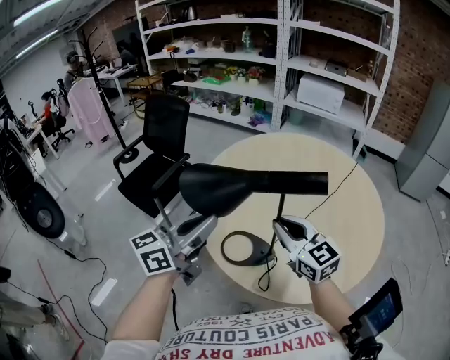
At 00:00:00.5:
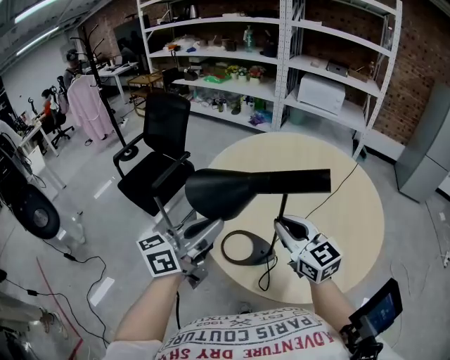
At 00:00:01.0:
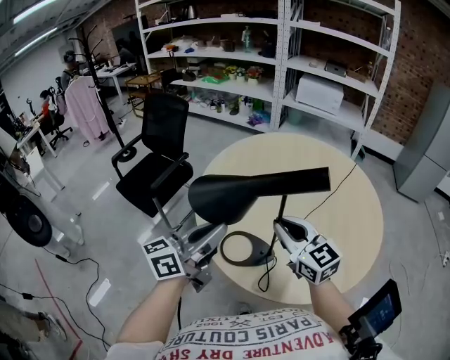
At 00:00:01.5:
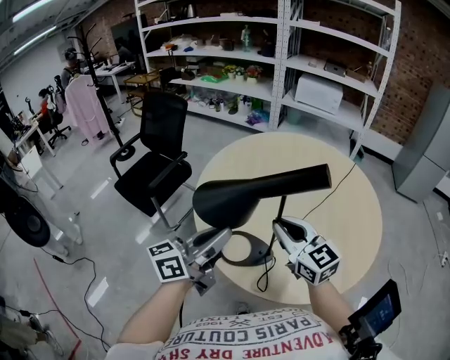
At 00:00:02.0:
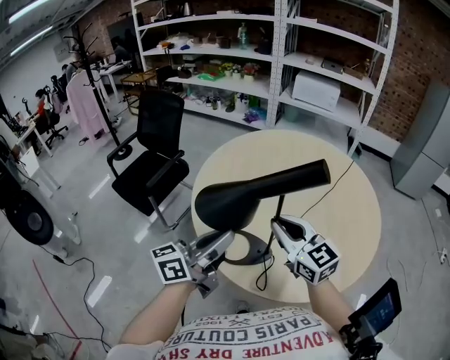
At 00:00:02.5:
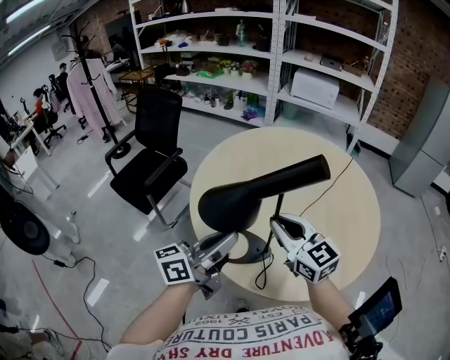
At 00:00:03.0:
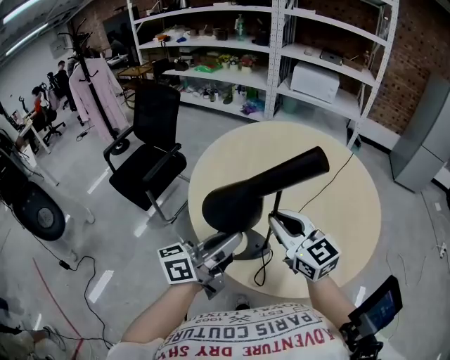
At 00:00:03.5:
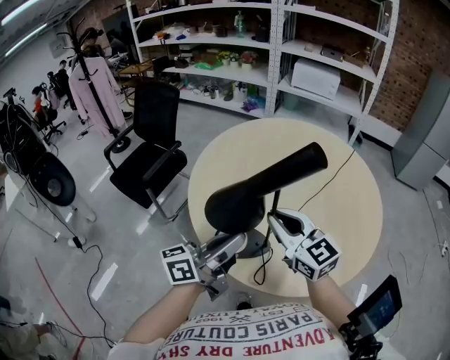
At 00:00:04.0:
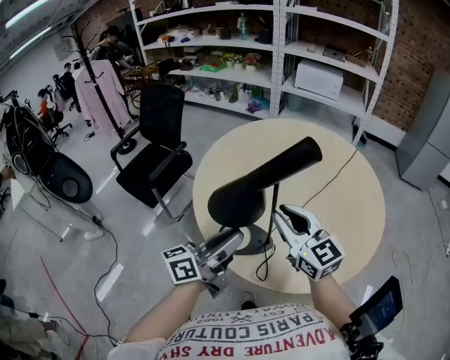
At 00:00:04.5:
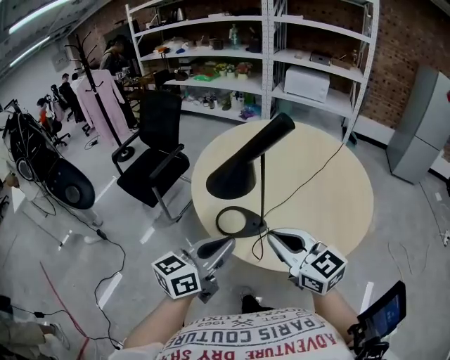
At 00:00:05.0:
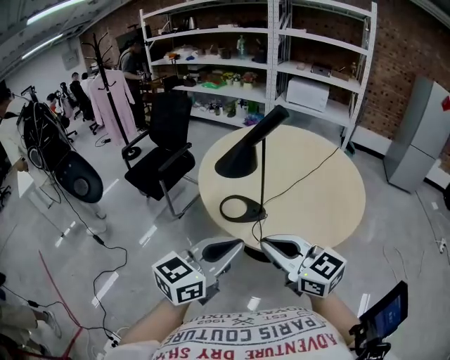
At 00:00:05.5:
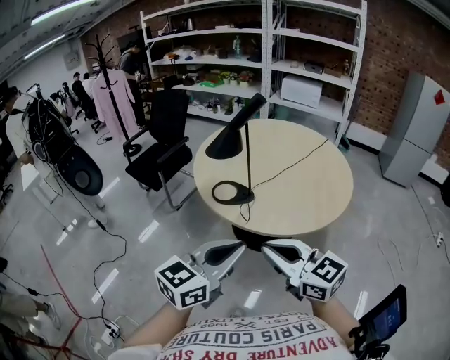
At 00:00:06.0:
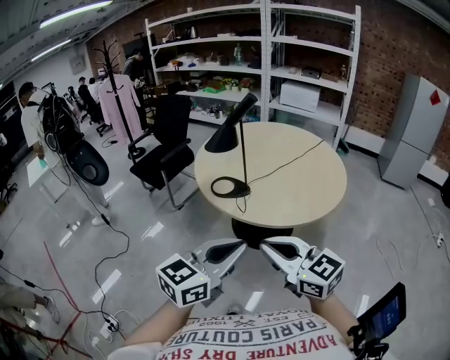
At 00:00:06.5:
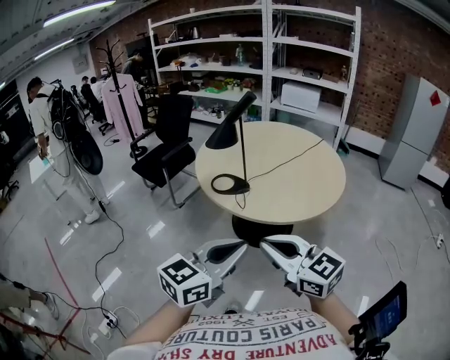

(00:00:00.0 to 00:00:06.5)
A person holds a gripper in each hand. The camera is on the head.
00:00:00.0 - 00:00:02.0: The left gripper heads downward, covering about 5 cm.
00:00:02.0 - 00:00:04.5: Both grippers move backward, some 15 cm. The left gripper swivels about 20 degrees.
00:00:04.5 - 00:00:06.5: Both grippers travel together backward, roughly 30 cm.

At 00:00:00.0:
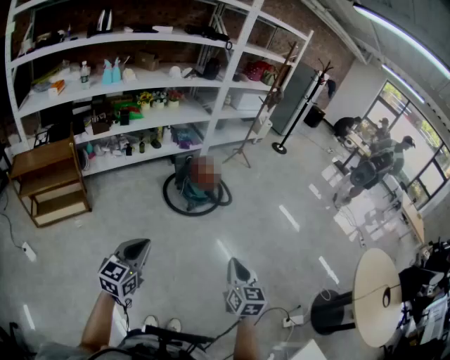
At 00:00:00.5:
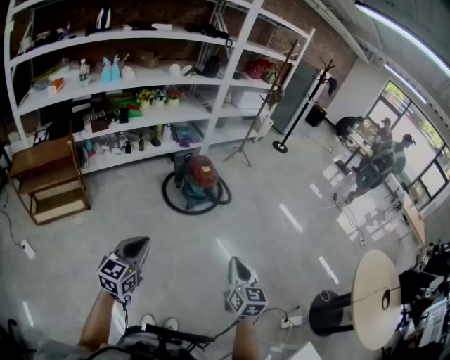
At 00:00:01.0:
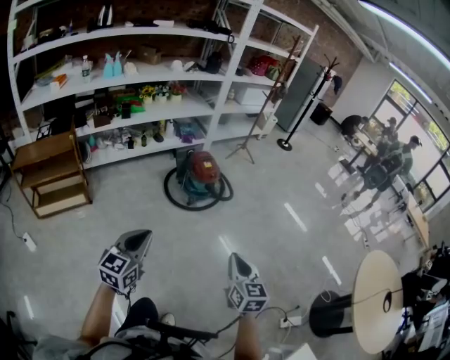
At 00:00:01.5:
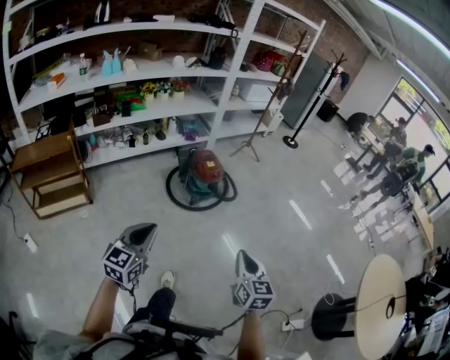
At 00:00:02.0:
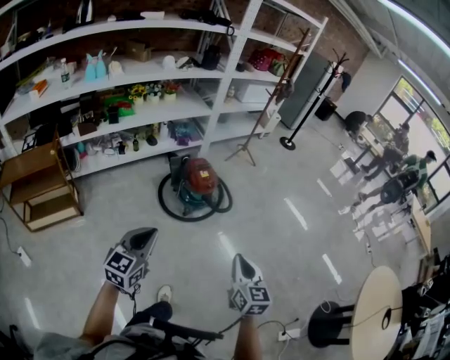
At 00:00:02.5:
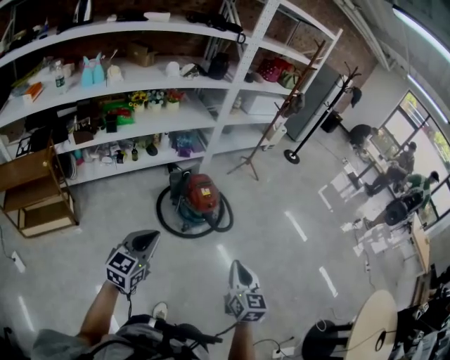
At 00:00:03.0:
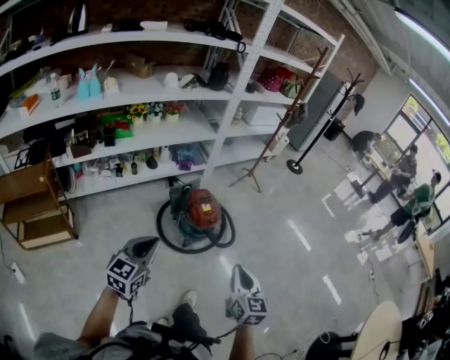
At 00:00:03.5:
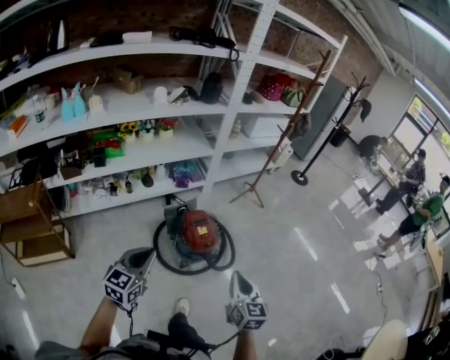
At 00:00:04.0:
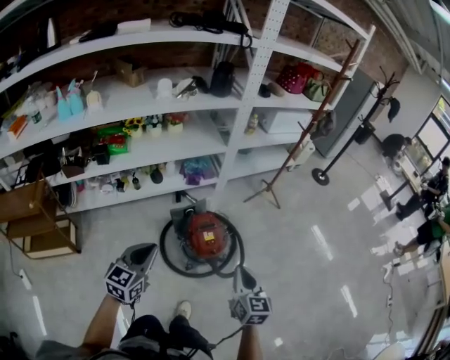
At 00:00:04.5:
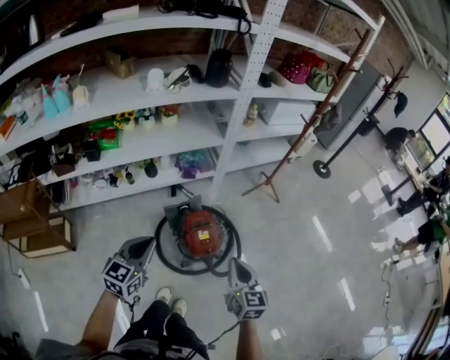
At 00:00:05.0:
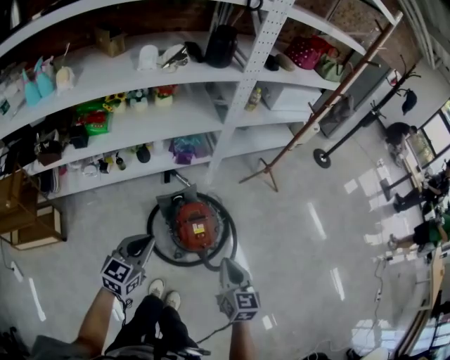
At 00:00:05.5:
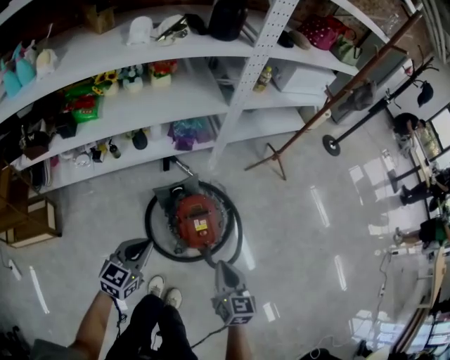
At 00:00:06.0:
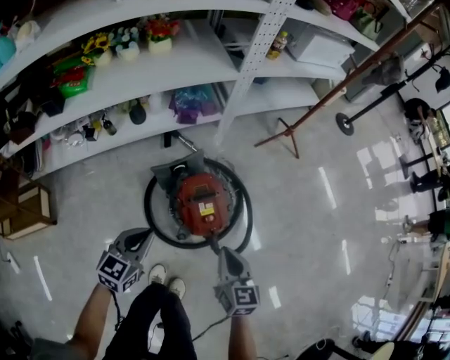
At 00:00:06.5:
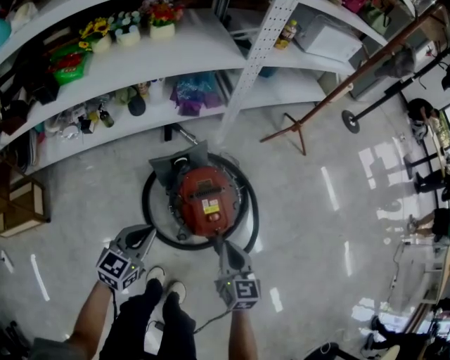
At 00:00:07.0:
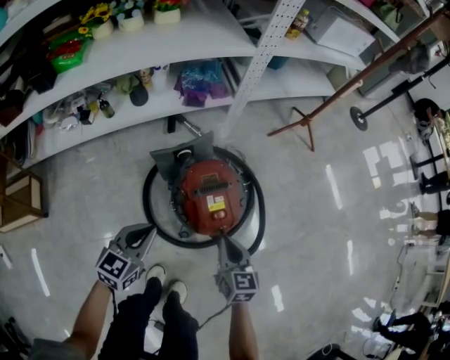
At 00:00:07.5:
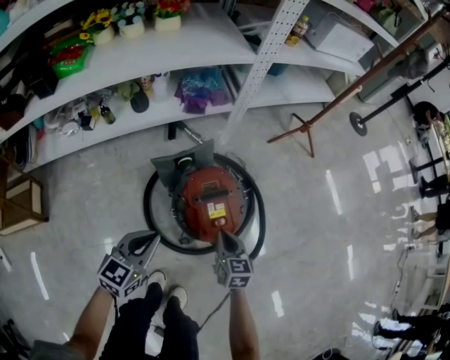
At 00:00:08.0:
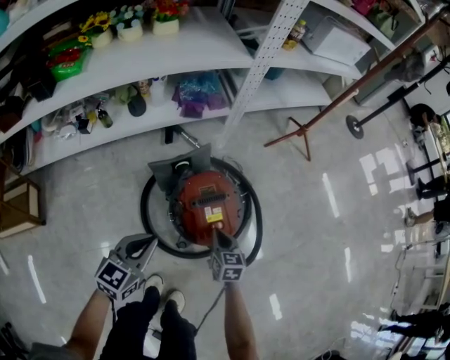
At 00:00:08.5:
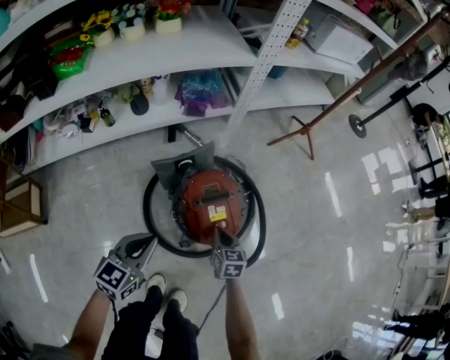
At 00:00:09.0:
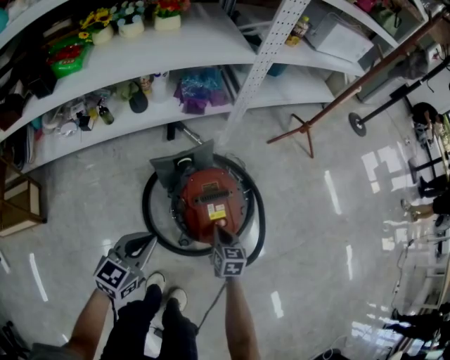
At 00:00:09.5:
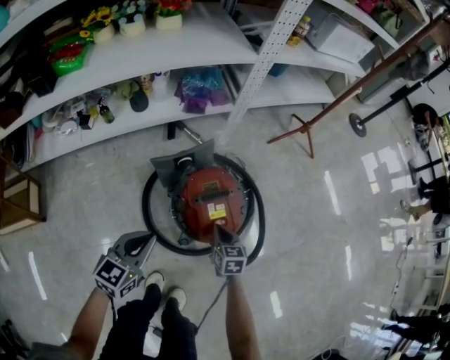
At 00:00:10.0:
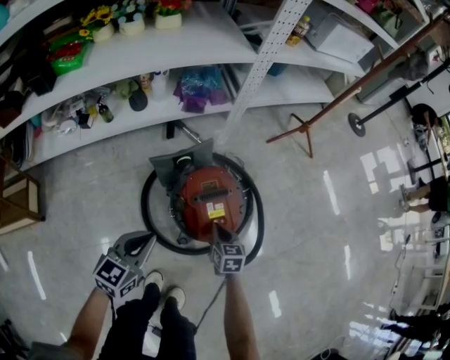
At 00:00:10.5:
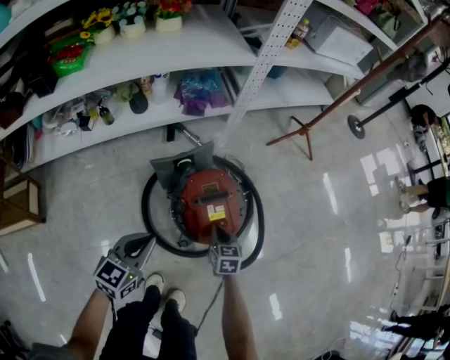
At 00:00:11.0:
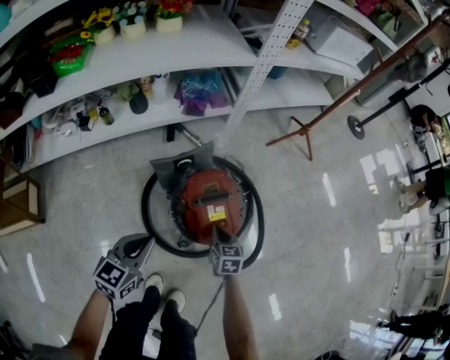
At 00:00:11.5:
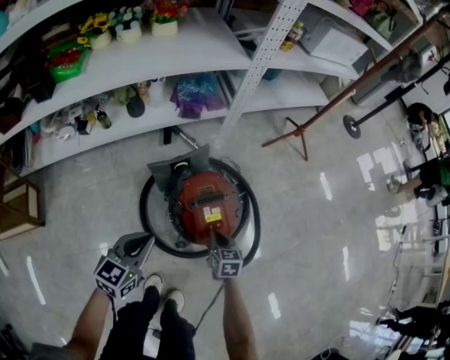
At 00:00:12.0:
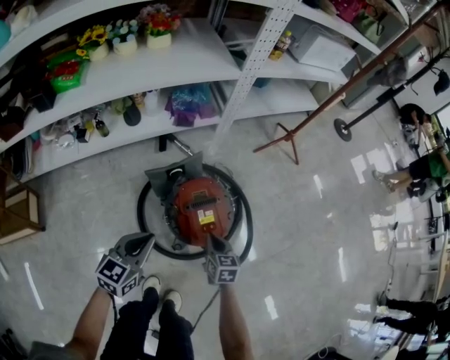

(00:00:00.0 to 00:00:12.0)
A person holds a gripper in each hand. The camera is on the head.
00:00:00.0 - 00:00:02.0: Both grippers move forward, some 20 cm.
00:00:02.0 - 00:00:04.0: Both grippers are carried forward, roughly 50 cm.
00:00:04.0 - 00:00:06.0: The two grippers go some 35 cm downward and forward.
00:00:06.0 - 00:00:08.0: The right gripper travels downward by roughly 25 cm. Meanwhile the left gripper shifts some 10 cm downward.
00:00:08.0 - 00:00:10.0: The grippers make only small movements.
00:00:10.0 - 00:00:12.0: The right gripper travels upward by some 10 cm, while the left gripper shifts by some 5 cm.

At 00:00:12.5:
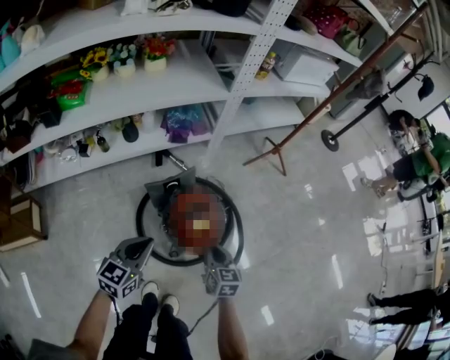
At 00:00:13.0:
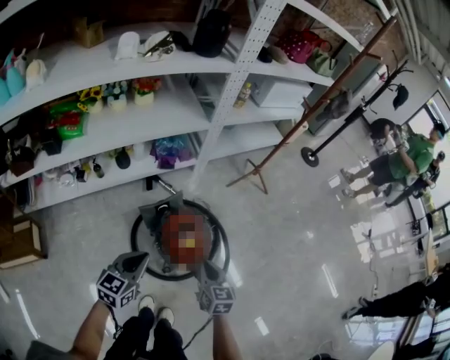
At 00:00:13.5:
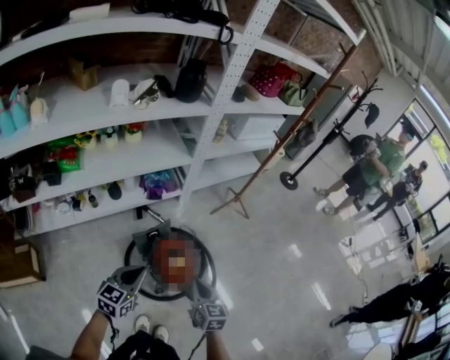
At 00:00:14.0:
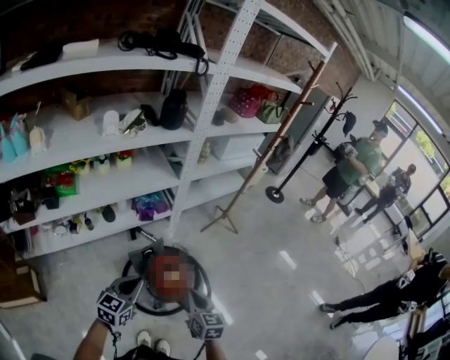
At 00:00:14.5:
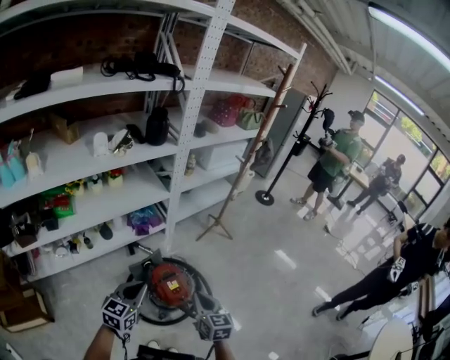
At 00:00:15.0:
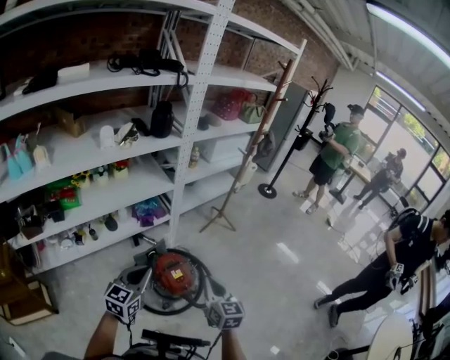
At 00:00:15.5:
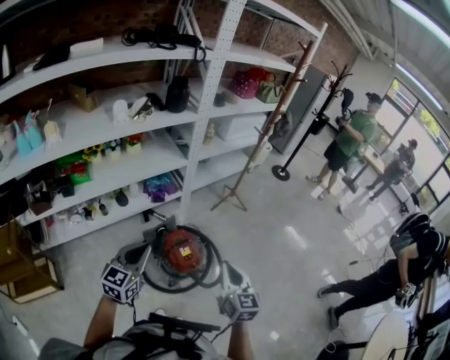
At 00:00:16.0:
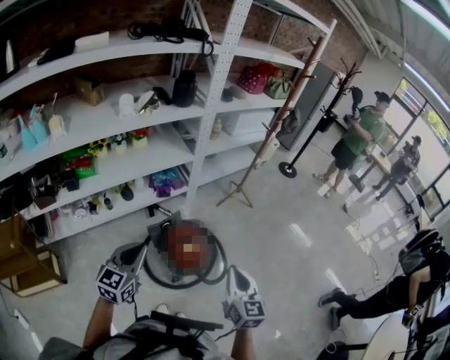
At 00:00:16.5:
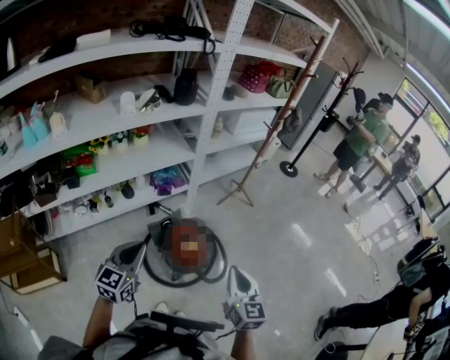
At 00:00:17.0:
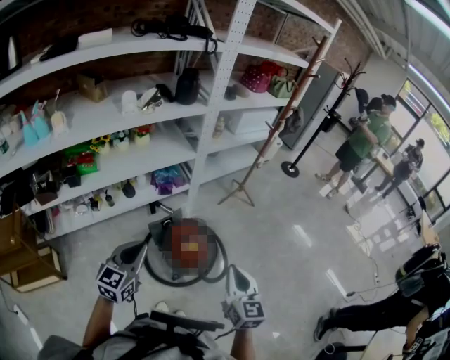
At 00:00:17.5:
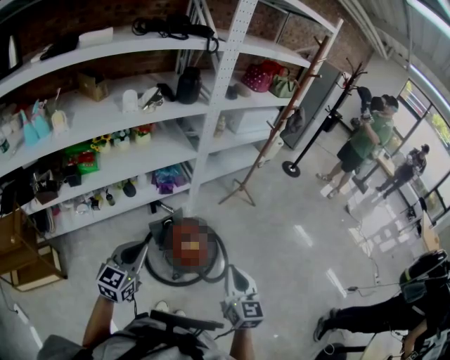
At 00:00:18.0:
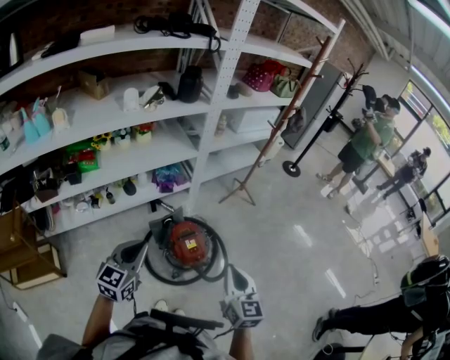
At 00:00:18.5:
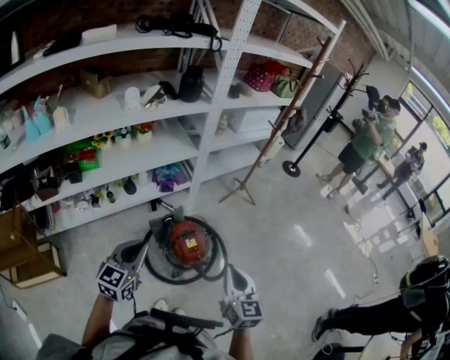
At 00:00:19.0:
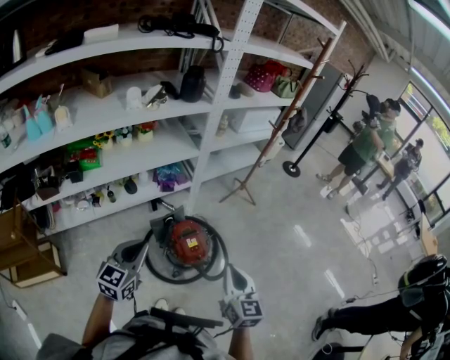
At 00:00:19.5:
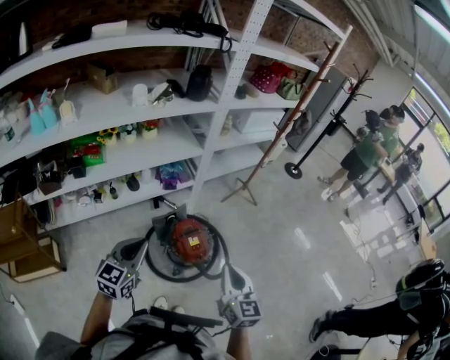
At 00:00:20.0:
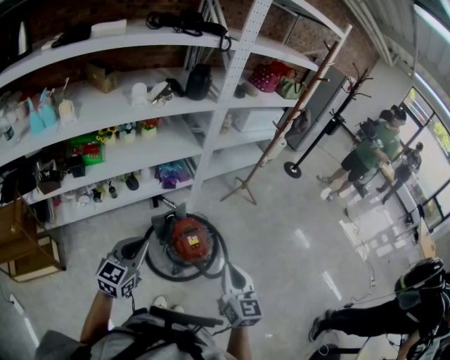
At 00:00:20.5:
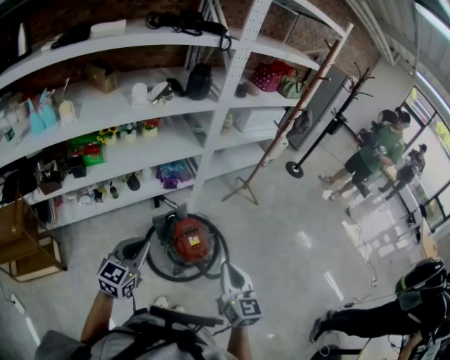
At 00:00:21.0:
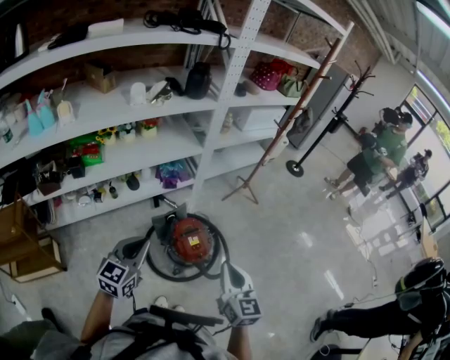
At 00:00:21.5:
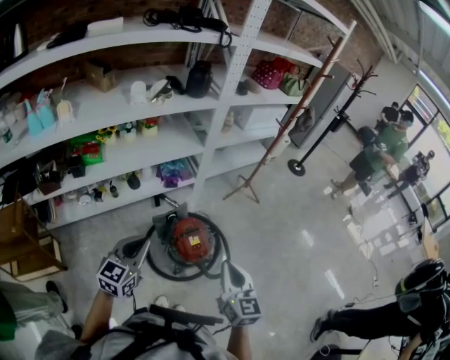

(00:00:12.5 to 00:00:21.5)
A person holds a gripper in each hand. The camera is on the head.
00:00:12.5 - 00:00:14.5: Both grippers travel together upward, about 30 cm.
00:00:14.5 - 00:00:17.0: The right gripper is displaced upward, backward and to the right by roughly 10 cm; the left gripper shifts approximately 10 cm backward and upward.
00:00:17.0 - 00:00:21.5: There are only small adjustments of the grippers.
